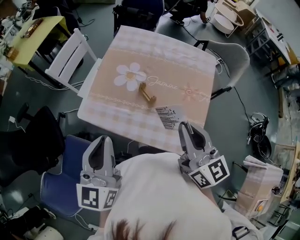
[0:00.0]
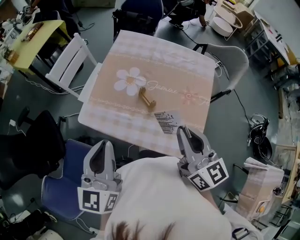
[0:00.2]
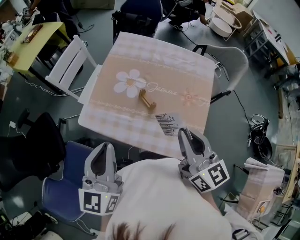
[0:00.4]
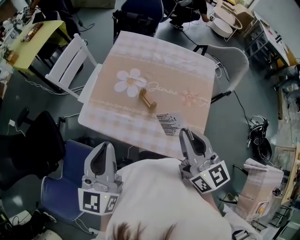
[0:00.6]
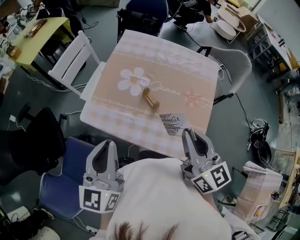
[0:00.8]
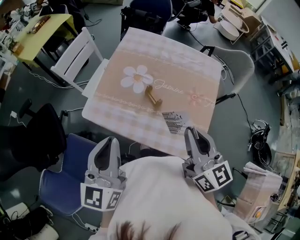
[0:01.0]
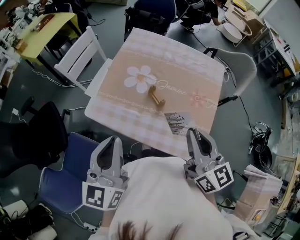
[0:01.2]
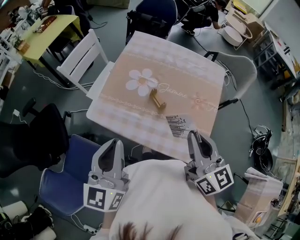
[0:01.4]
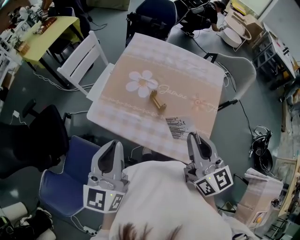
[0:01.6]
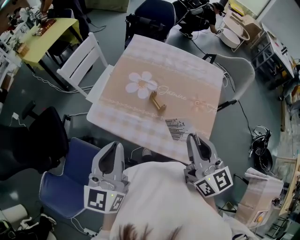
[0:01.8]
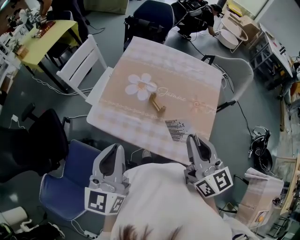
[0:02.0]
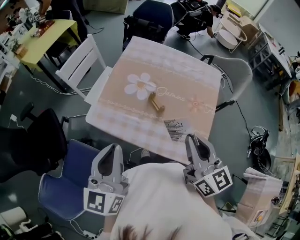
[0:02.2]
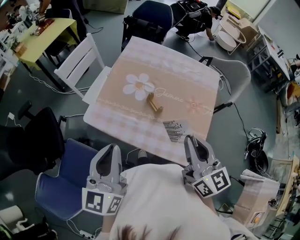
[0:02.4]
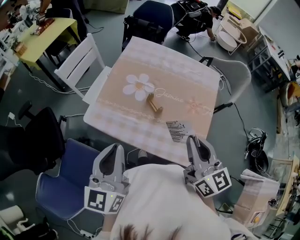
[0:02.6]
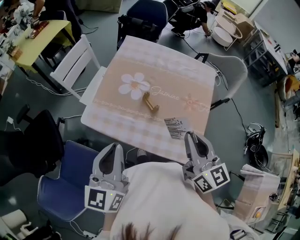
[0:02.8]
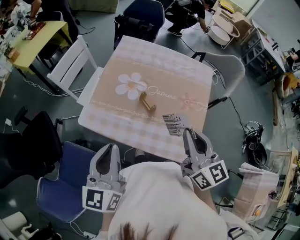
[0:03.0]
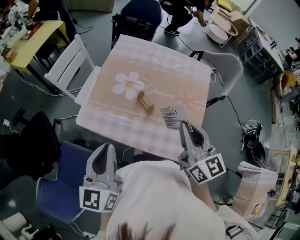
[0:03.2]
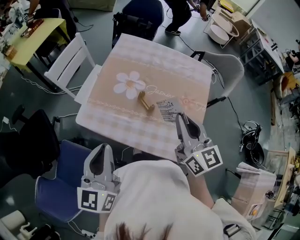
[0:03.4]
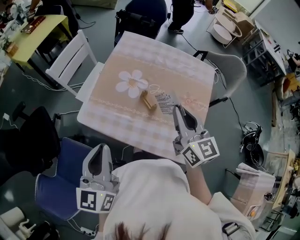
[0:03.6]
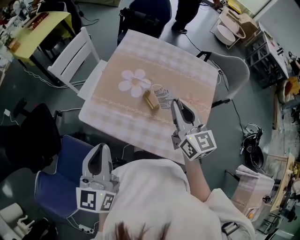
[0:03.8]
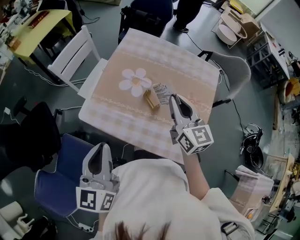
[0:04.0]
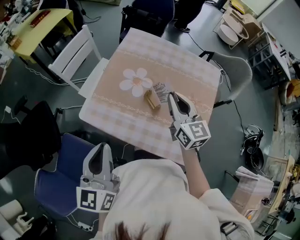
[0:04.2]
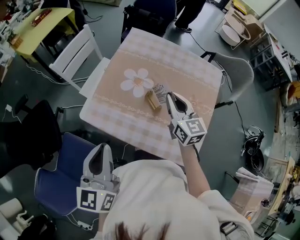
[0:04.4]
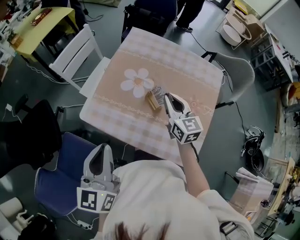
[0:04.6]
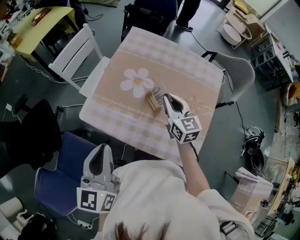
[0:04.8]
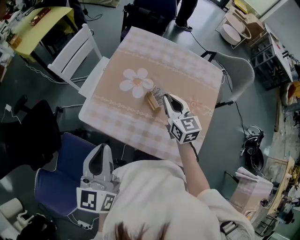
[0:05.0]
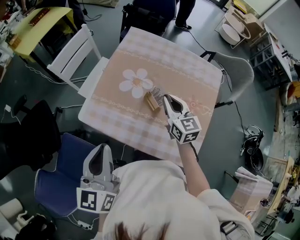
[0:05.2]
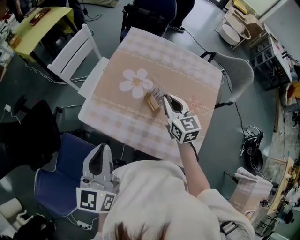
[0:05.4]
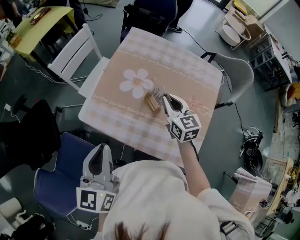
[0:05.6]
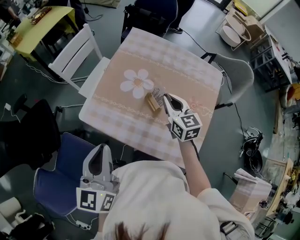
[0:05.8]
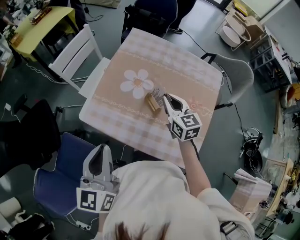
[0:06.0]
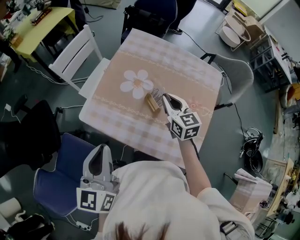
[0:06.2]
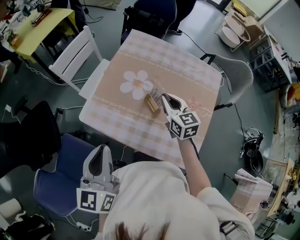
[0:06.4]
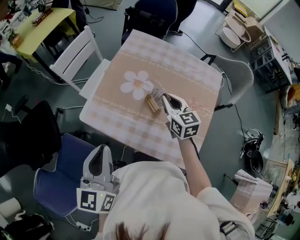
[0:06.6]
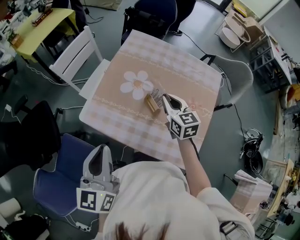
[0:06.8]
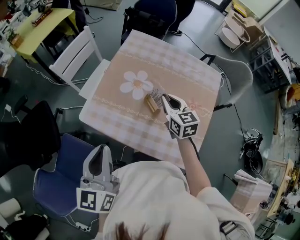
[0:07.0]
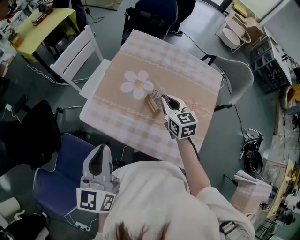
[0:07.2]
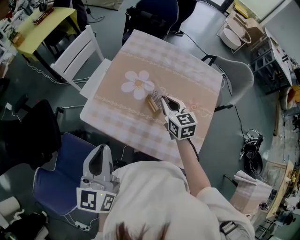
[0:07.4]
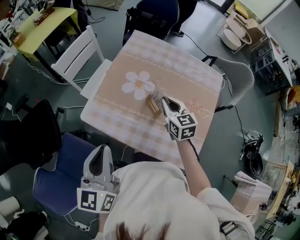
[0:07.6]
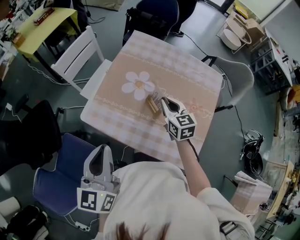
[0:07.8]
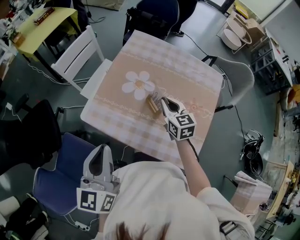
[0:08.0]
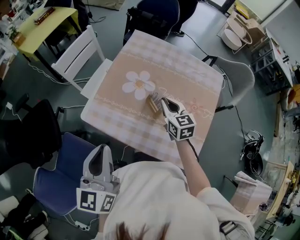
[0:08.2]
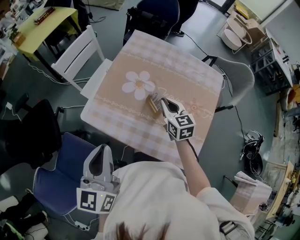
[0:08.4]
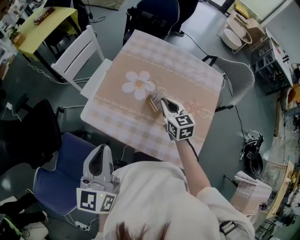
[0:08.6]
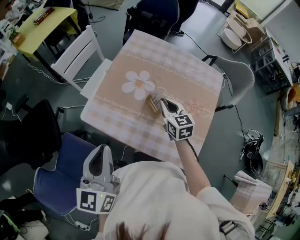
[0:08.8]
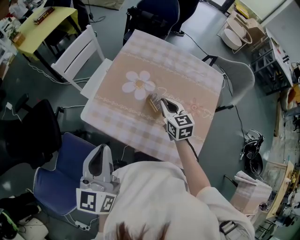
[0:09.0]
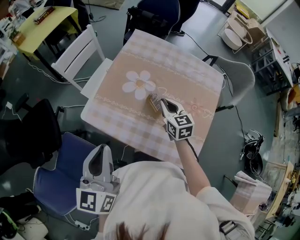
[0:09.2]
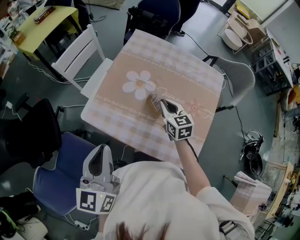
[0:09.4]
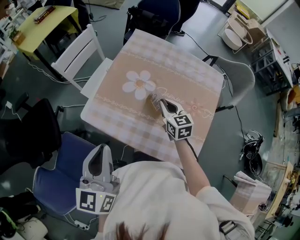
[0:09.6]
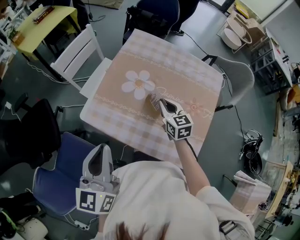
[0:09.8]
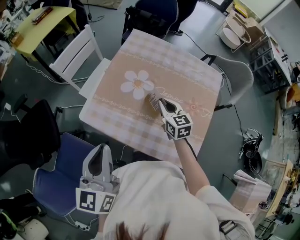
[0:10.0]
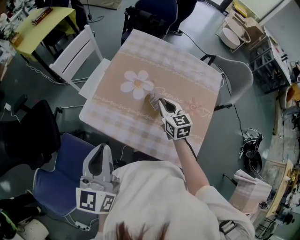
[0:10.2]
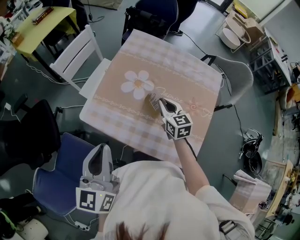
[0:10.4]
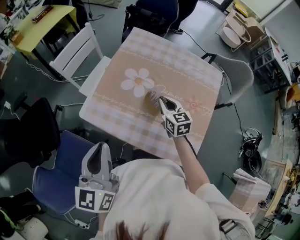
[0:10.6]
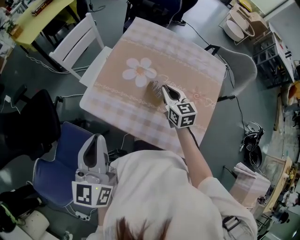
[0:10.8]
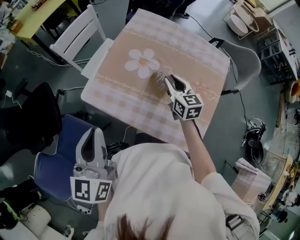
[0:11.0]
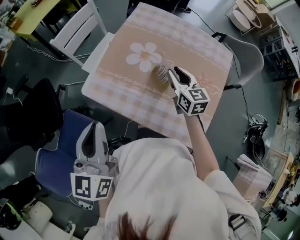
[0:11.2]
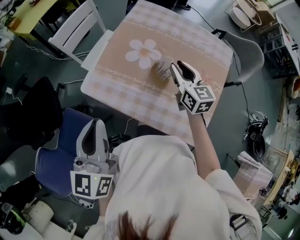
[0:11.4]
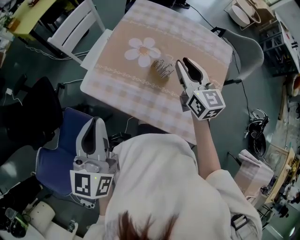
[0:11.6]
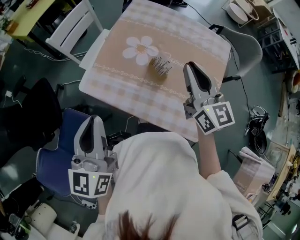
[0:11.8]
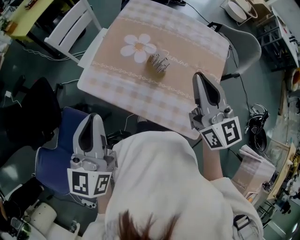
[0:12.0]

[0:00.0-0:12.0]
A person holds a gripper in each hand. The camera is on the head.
0:00.0 to 0:01.6: Both grippers stay put.
0:01.6 to 0:03.0: The grippers make only small movements.
0:03.0 to 0:04.4: The right gripper goes some 20 cm forward and downward.
0:04.4 to 0:06.0: The grippers move only a little.
0:06.0 to 0:09.0: The grippers make only small movements.
0:09.0 to 0:10.4: Both grippers stay put.
0:10.4 to 0:12.0: The right gripper heads upward and backward, covering some 25 cm, changes its angle by some 30 degrees, and opens, then closes again.

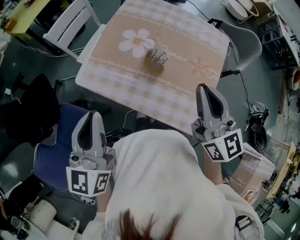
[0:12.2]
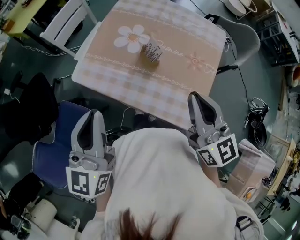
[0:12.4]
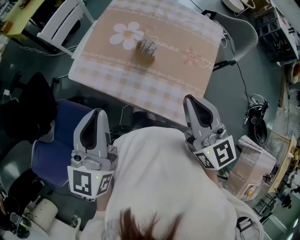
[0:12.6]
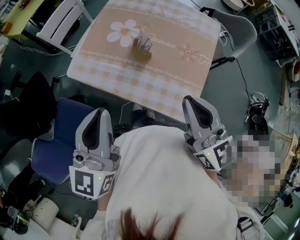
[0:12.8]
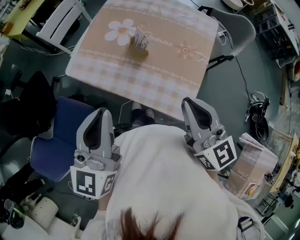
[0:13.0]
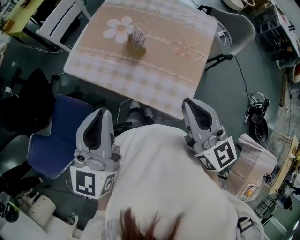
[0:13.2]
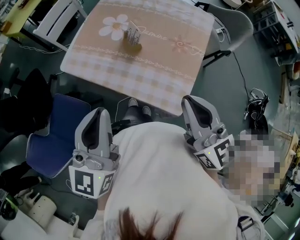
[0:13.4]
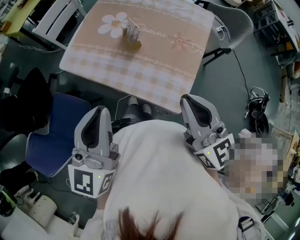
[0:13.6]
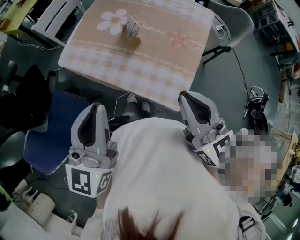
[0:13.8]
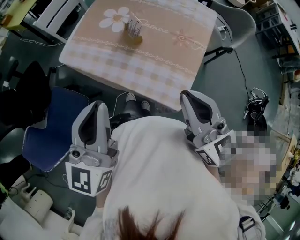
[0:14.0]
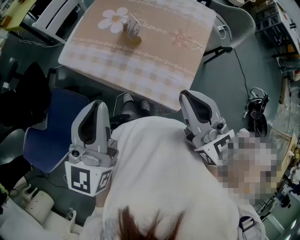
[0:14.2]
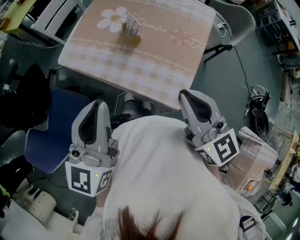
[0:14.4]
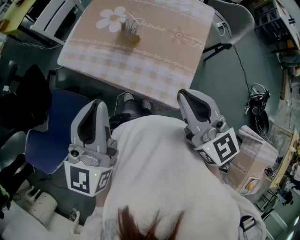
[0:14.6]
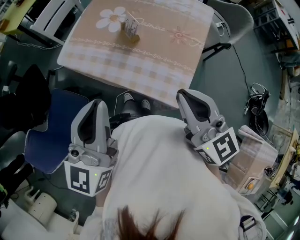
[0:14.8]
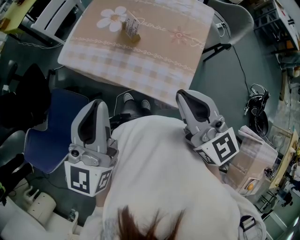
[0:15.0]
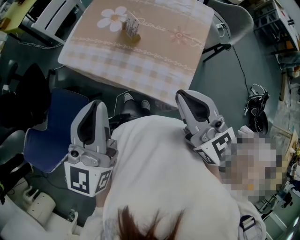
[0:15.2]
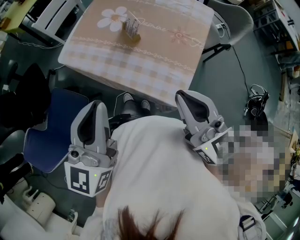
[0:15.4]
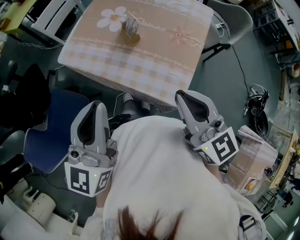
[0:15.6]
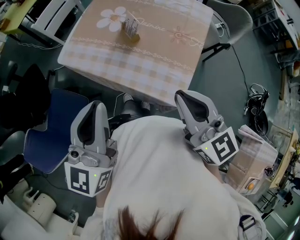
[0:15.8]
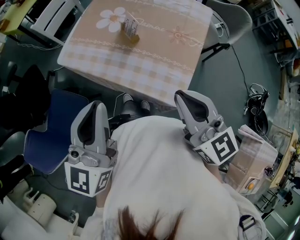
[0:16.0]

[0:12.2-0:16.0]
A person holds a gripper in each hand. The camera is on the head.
0:12.2 to 0:13.4: The right gripper moves backward, about 15 cm, while the left gripper shifts some 15 cm to the right and backward.
0:13.4 to 0:14.8: The grippers make only small movements.
0:14.8 to 0:16.0: Neither gripper changes place.

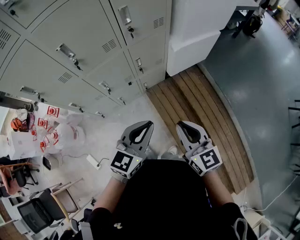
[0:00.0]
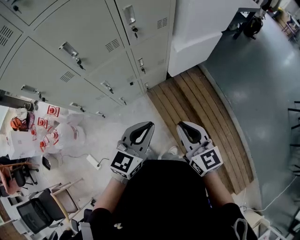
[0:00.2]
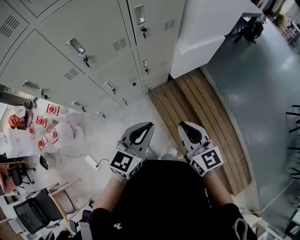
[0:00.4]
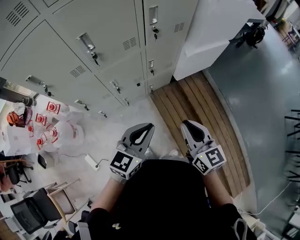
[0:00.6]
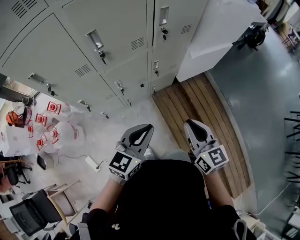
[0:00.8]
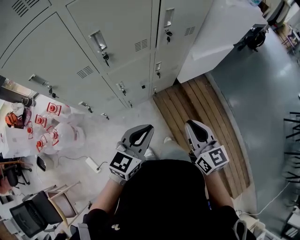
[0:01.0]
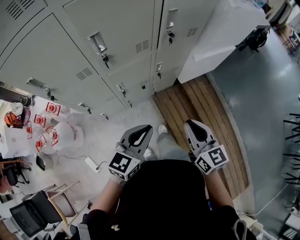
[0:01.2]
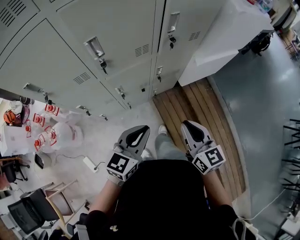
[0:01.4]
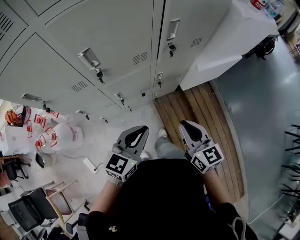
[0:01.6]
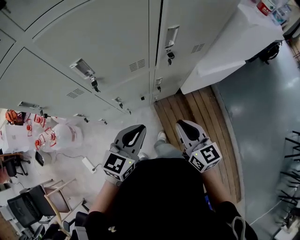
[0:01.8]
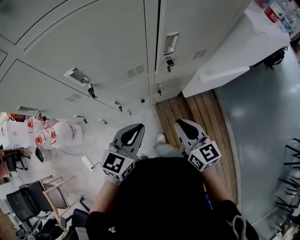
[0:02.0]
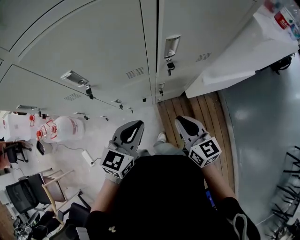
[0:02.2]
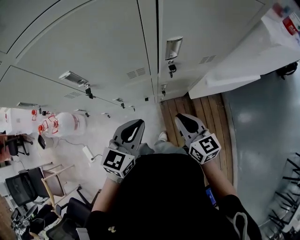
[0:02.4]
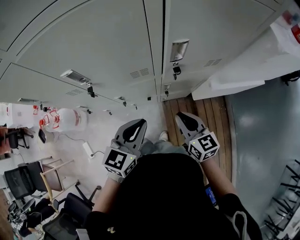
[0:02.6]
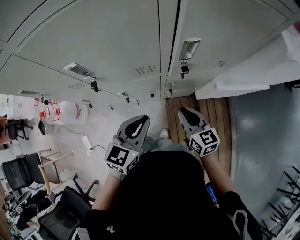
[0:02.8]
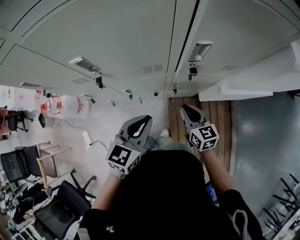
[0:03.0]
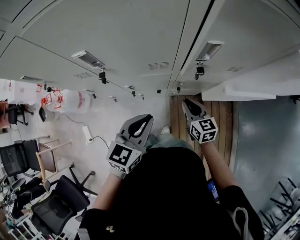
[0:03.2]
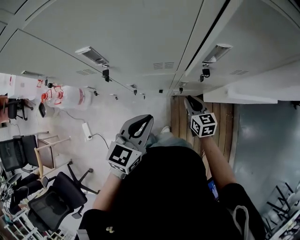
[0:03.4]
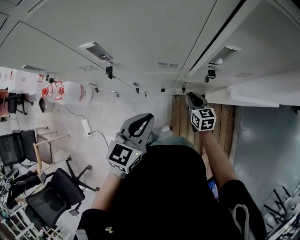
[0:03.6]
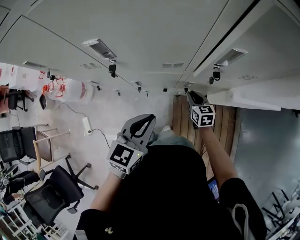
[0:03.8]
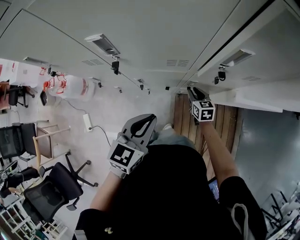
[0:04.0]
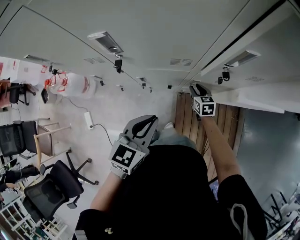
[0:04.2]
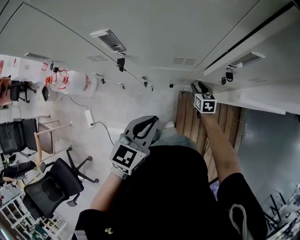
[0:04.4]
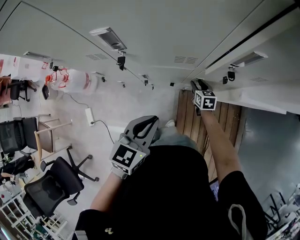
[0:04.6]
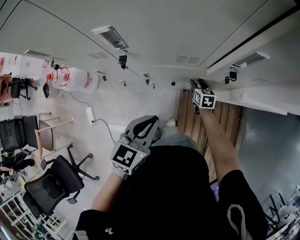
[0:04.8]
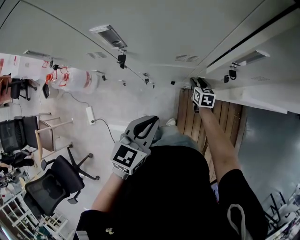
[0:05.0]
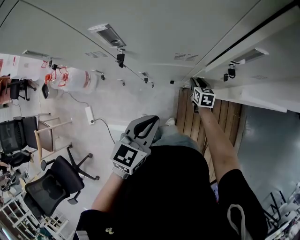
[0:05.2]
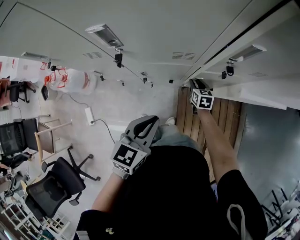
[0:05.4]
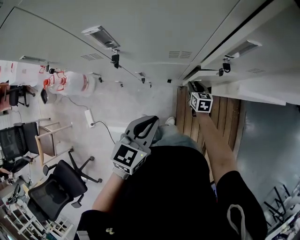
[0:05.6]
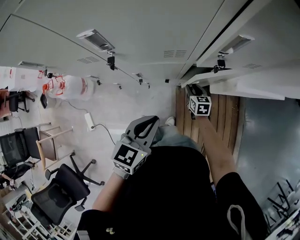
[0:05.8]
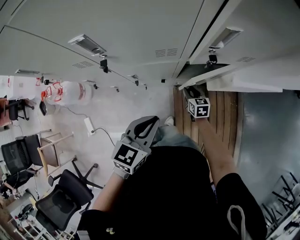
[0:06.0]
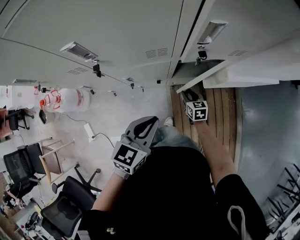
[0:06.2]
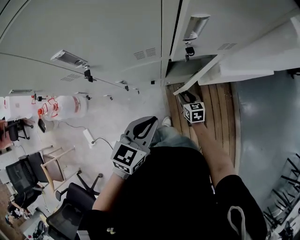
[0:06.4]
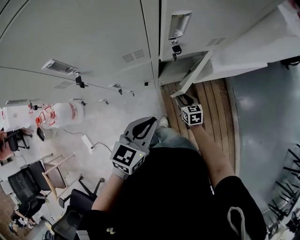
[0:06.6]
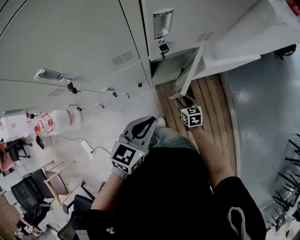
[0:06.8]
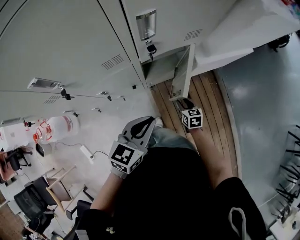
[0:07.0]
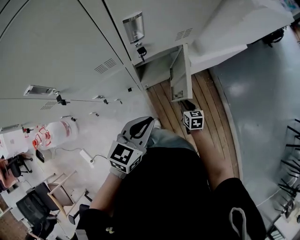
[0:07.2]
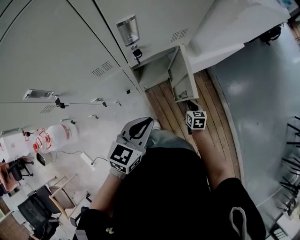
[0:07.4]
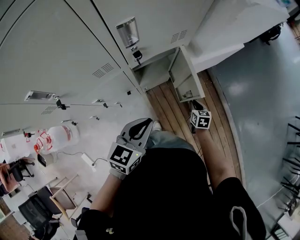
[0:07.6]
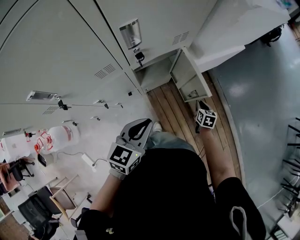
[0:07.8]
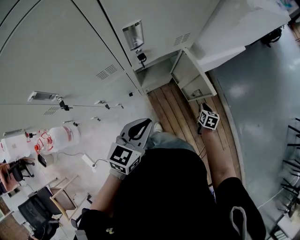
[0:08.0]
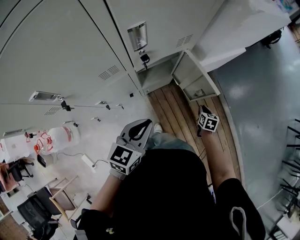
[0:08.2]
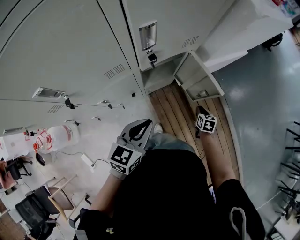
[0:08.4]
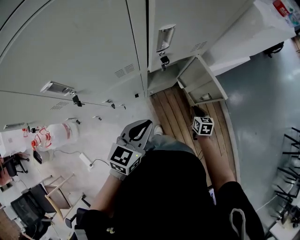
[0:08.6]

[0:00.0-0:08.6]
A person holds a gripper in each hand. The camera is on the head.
0:00.0 to 0:01.4: The left gripper shifts approximately 15 cm to the left. The right gripper travels to the left and forward by about 15 cm.
0:01.4 to 0:02.8: The left gripper heads forward, covering some 15 cm, and rotates roughly 20 degrees; the right gripper moves forward and downward, approximately 25 cm, and turns by roughly 20 degrees.
0:02.8 to 0:04.4: The left gripper changes place by approximately 5 cm. The right gripper travels downward and forward by about 25 cm, changes its angle by about 20 degrees, and opens its fingers.
0:04.4 to 0:05.8: There are only small adjustments of the grippers.
0:05.8 to 0:07.2: The left gripper goes some 10 cm to the right, and rotates about 30 degrees. Meanwhile the right gripper travels to the right and backward by some 25 cm, and changes its angle by some 20 degrees.
0:07.2 to 0:08.6: The left gripper travels to the left by roughly 5 cm. The right gripper travels to the right and back again, approximately 10 cm each way.
